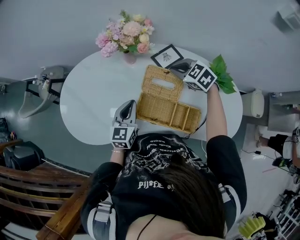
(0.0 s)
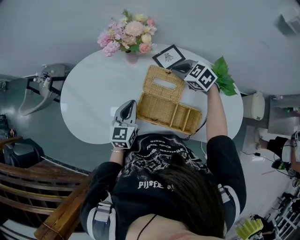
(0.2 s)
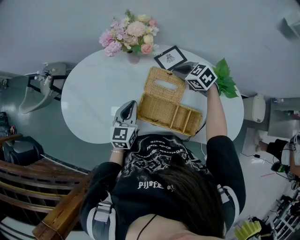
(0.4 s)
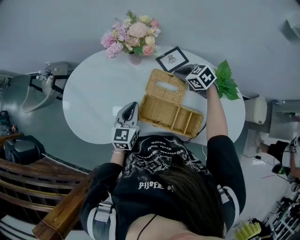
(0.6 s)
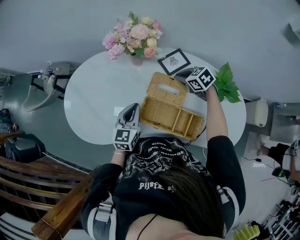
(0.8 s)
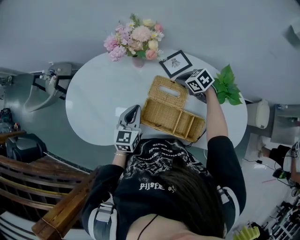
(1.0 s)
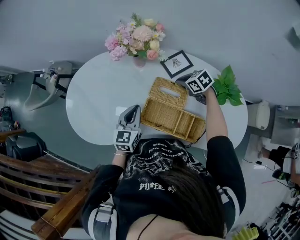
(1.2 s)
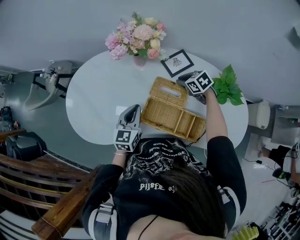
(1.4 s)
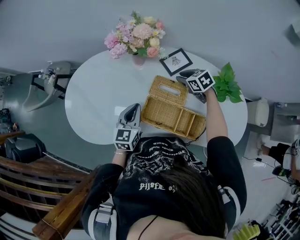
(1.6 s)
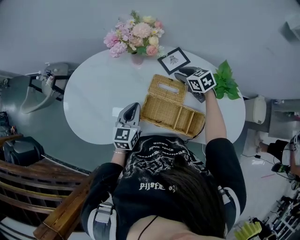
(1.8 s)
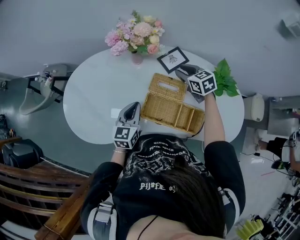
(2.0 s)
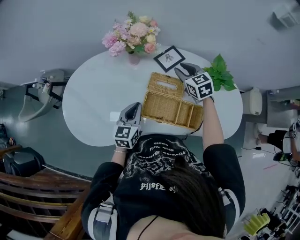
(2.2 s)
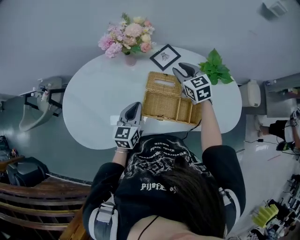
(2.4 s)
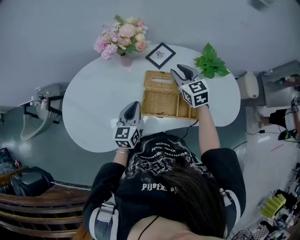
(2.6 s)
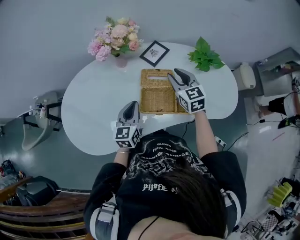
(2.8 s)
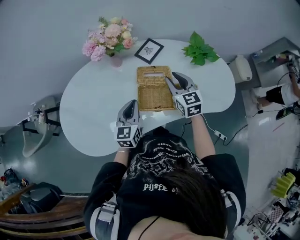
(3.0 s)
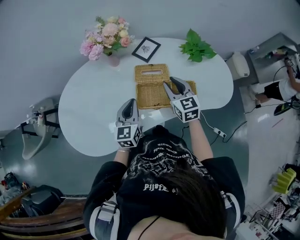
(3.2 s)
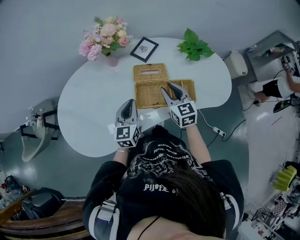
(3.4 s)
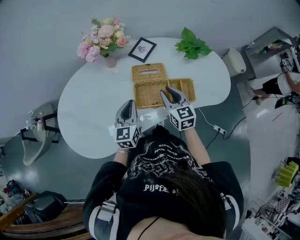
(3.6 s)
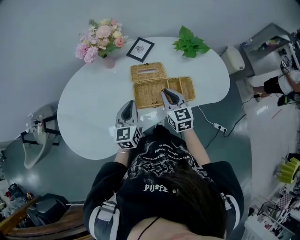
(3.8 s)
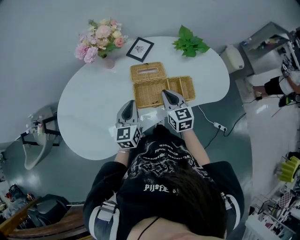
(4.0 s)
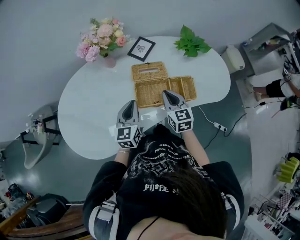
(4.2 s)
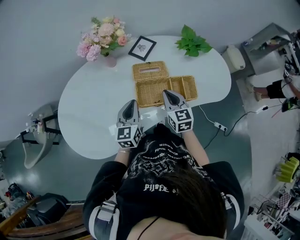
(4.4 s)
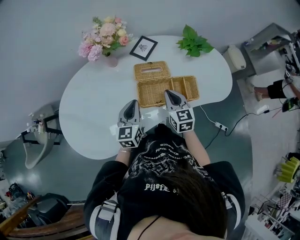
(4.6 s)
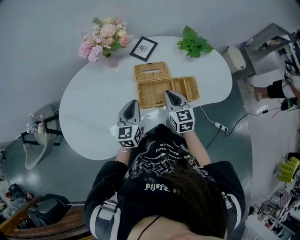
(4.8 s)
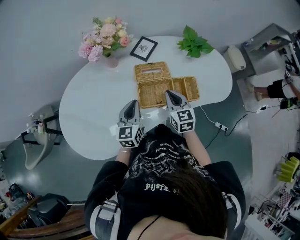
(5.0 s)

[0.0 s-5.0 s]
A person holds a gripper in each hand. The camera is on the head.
0.0 to 1.6 s: The right gripper is displaced downward by some 10 cm, swivels some 20 degrees, and opens.
1.6 to 3.4 s: The left gripper shifts by some 5 cm, while the right gripper changes place by some 25 cm, and rotates some 50 degrees.
3.4 to 5.0 s: The right gripper closes its fingers.

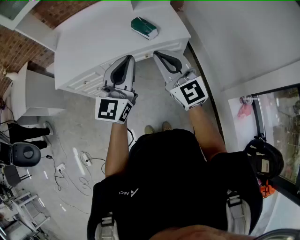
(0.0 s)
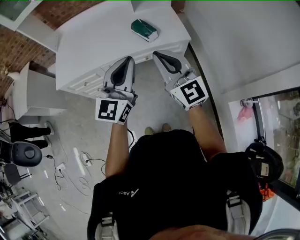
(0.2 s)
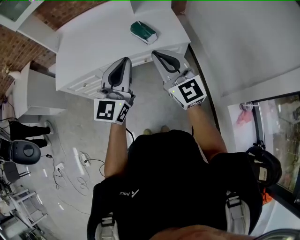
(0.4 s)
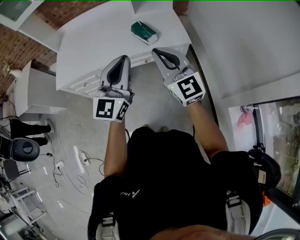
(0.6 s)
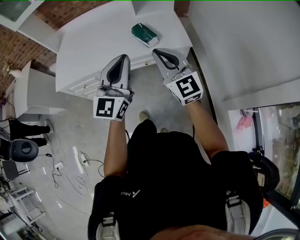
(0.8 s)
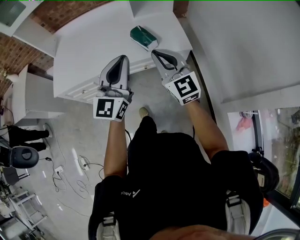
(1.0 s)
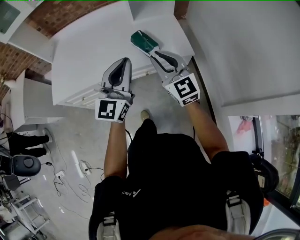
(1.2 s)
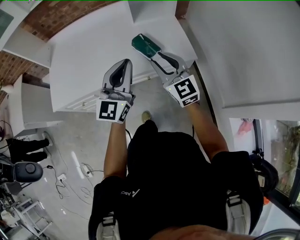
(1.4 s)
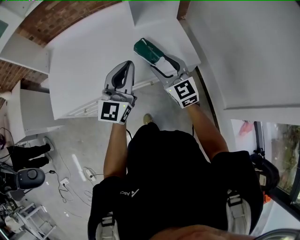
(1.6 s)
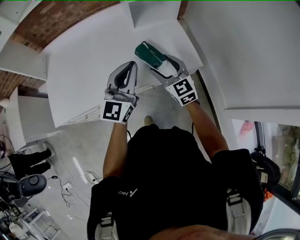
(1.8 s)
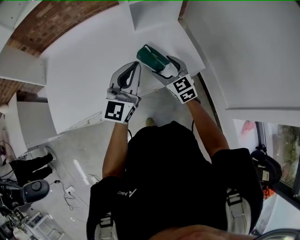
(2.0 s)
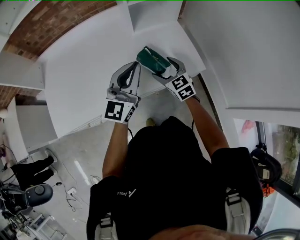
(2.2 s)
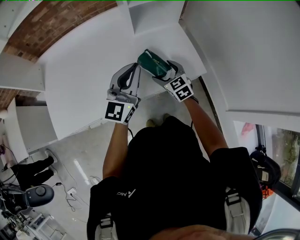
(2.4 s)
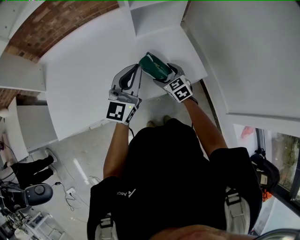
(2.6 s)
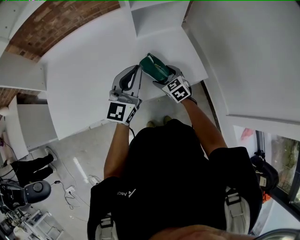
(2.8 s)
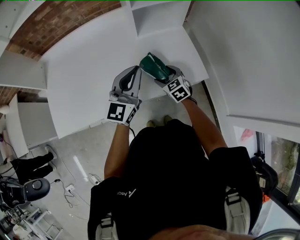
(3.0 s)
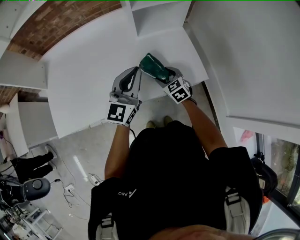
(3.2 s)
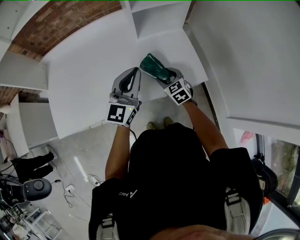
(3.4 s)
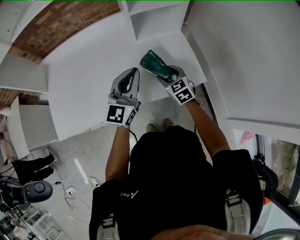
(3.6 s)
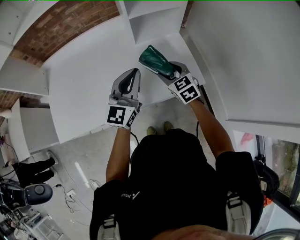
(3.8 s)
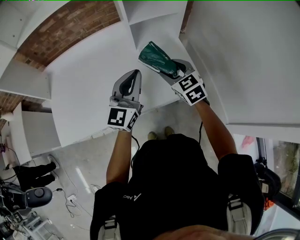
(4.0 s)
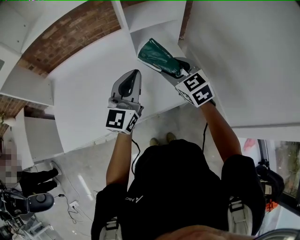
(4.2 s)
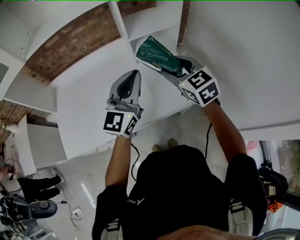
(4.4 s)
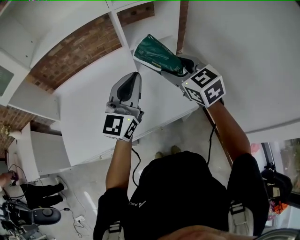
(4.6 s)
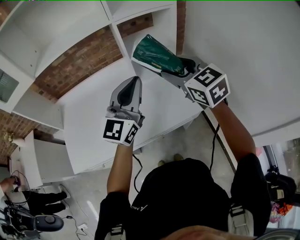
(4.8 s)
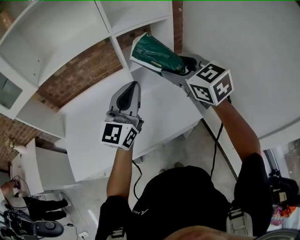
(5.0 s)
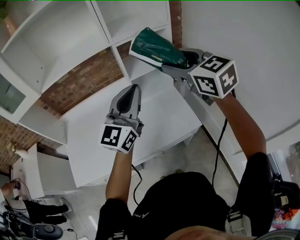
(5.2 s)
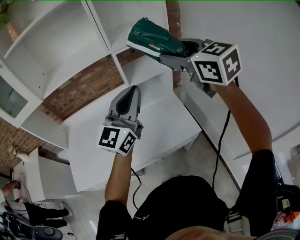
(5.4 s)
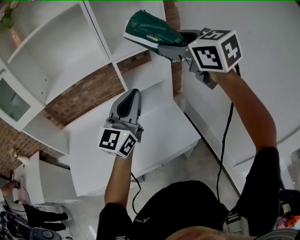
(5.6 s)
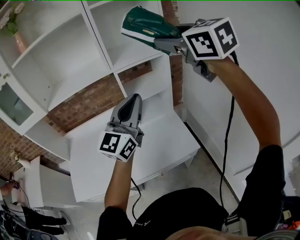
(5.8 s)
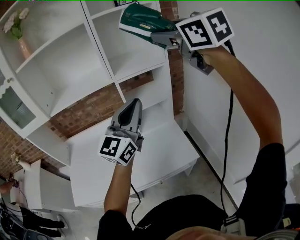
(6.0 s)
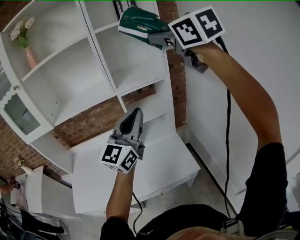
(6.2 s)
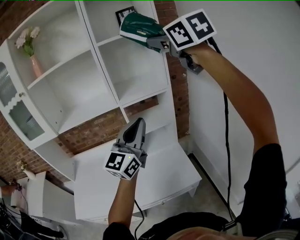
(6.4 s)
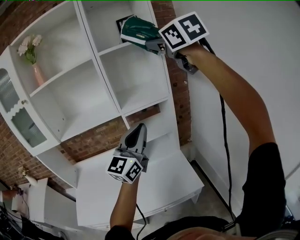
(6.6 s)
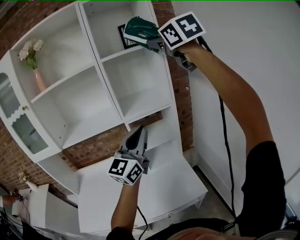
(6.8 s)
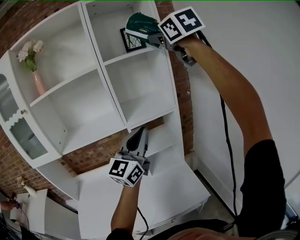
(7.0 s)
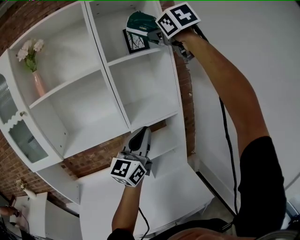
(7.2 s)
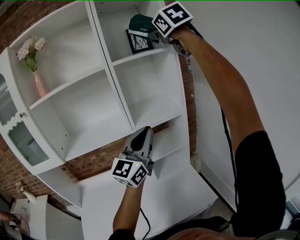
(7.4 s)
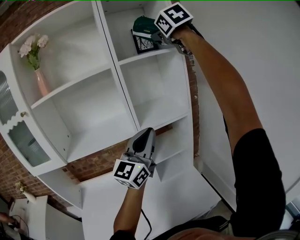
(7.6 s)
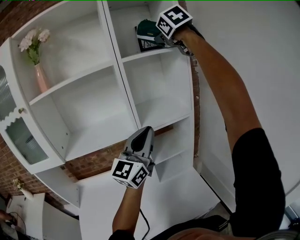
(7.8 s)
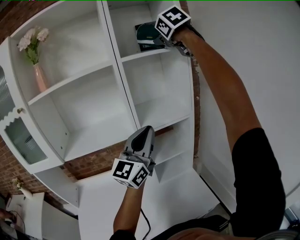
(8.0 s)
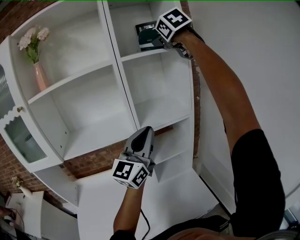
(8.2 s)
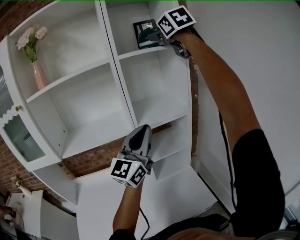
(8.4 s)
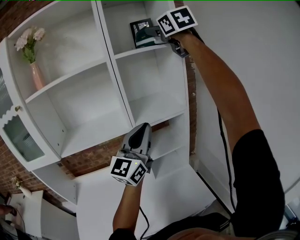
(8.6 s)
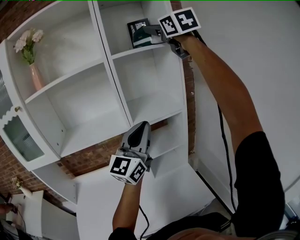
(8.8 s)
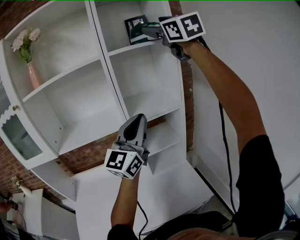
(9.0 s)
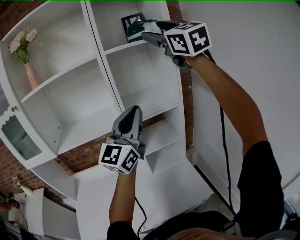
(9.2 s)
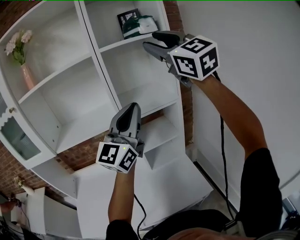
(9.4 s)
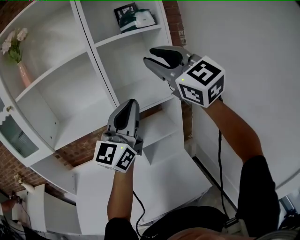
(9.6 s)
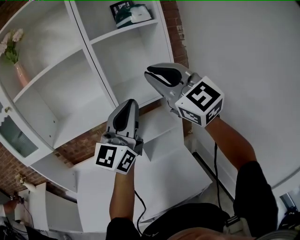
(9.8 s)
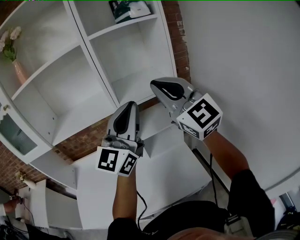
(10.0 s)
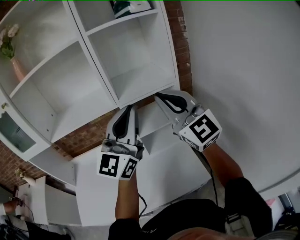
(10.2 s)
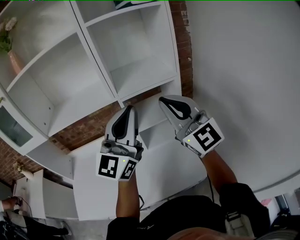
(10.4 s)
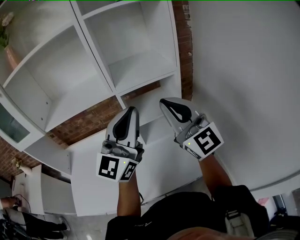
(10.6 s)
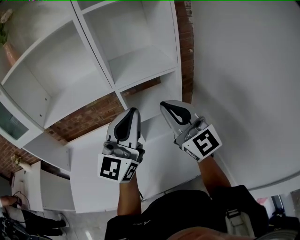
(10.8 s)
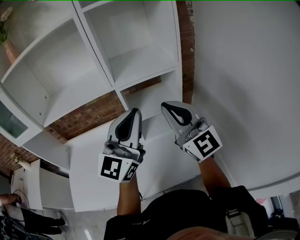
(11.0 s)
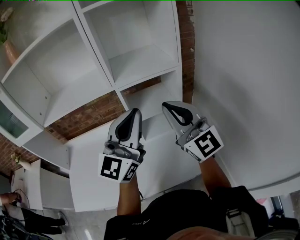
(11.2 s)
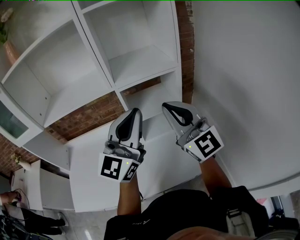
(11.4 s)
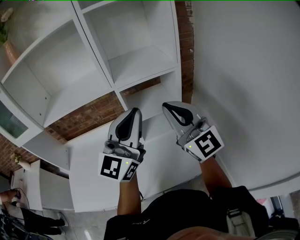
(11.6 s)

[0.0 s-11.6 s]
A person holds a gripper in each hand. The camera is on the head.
0.0 to 1.4 s: The left gripper goes about 20 cm forward. The right gripper heads forward and downward, covering about 20 cm.
1.4 to 2.8 s: The right gripper moves downward and forward, about 30 cm, tips its fingers downward by approximately 40 degrees, and opens its fingers; the left gripper moves forward, about 15 cm.
2.8 to 4.4 s: The right gripper moves upward, some 30 cm, and closes up. The left gripper is displaced upward by roughly 15 cm.
4.4 to 5.8 s: The right gripper goes approximately 40 cm upward, while the left gripper heads upward and to the right, covering approximately 20 cm.
5.8 to 7.2 s: The right gripper travels upward and forward by approximately 25 cm. Meanwhile the left gripper moves forward and upward, about 10 cm.
8.8 to 10.2 s: The right gripper is displaced downward and backward by about 35 cm, and closes its fingers.
10.2 to 11.6 s: Both grippers move downward, some 5 cm.

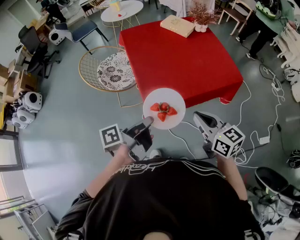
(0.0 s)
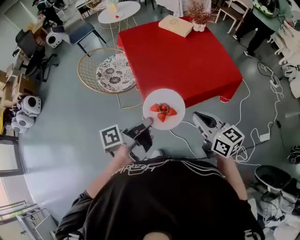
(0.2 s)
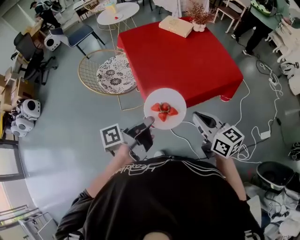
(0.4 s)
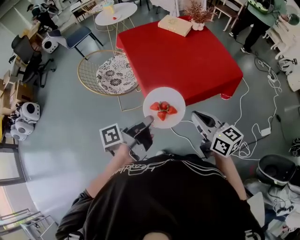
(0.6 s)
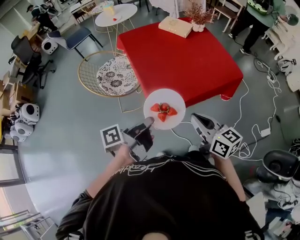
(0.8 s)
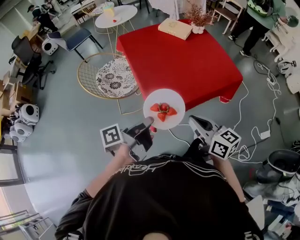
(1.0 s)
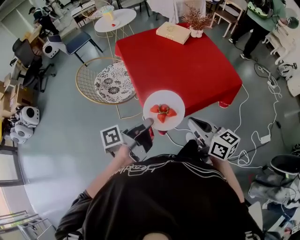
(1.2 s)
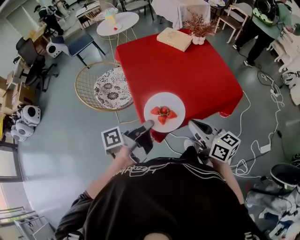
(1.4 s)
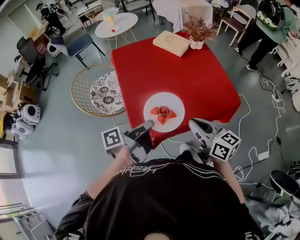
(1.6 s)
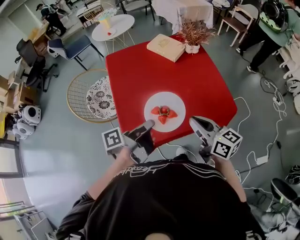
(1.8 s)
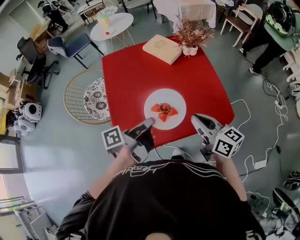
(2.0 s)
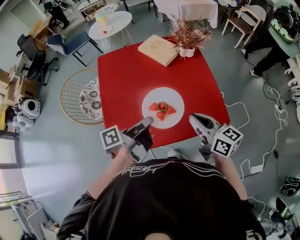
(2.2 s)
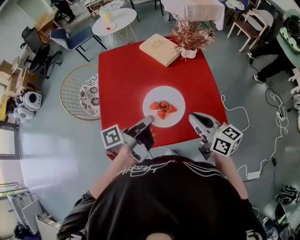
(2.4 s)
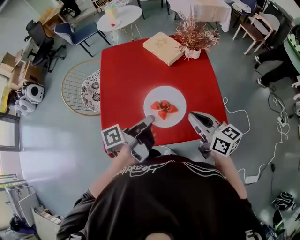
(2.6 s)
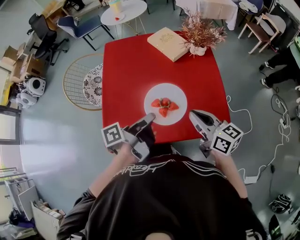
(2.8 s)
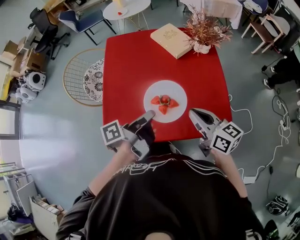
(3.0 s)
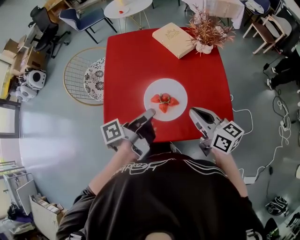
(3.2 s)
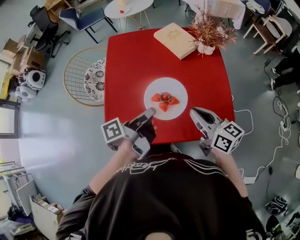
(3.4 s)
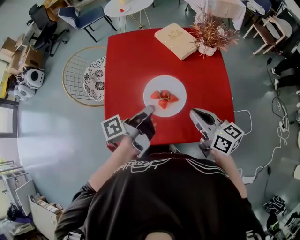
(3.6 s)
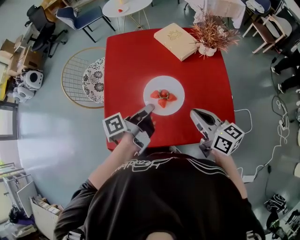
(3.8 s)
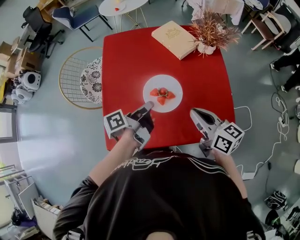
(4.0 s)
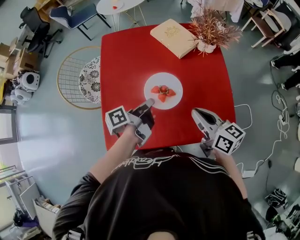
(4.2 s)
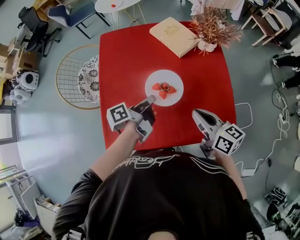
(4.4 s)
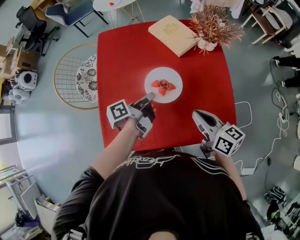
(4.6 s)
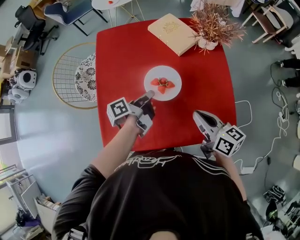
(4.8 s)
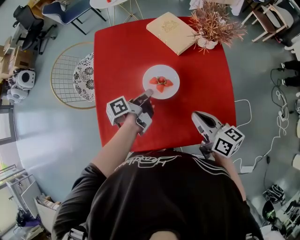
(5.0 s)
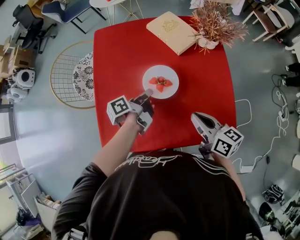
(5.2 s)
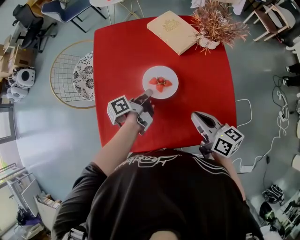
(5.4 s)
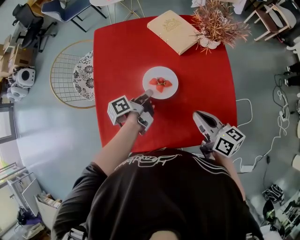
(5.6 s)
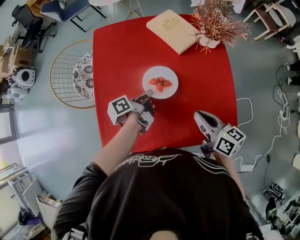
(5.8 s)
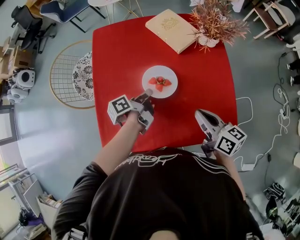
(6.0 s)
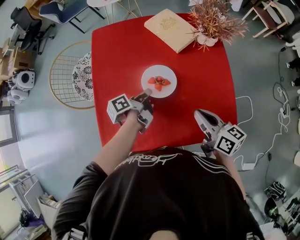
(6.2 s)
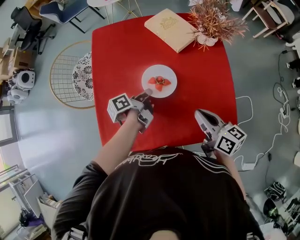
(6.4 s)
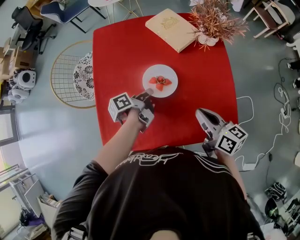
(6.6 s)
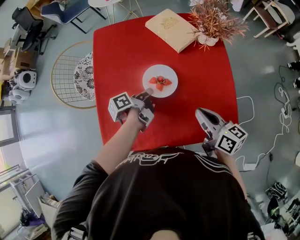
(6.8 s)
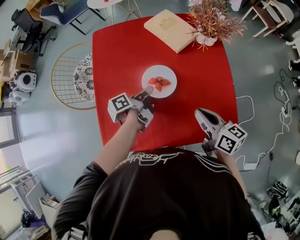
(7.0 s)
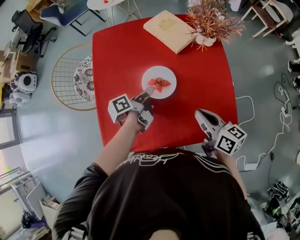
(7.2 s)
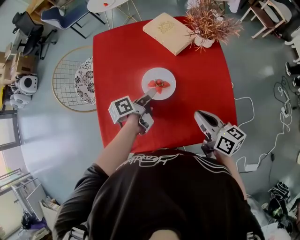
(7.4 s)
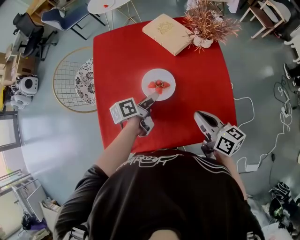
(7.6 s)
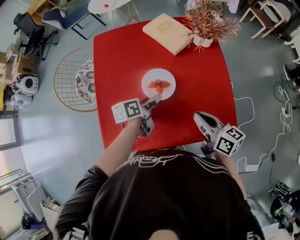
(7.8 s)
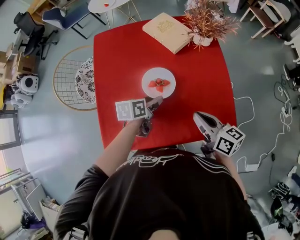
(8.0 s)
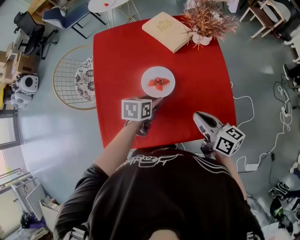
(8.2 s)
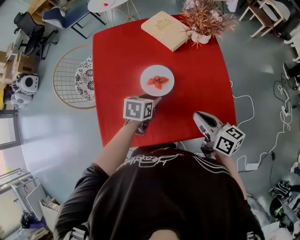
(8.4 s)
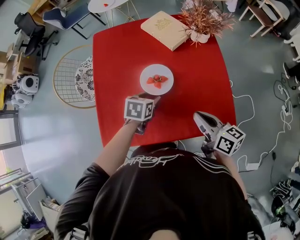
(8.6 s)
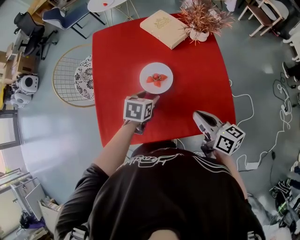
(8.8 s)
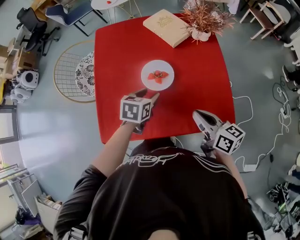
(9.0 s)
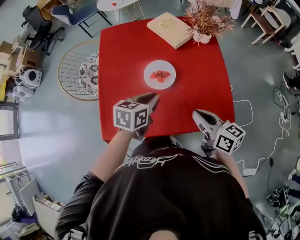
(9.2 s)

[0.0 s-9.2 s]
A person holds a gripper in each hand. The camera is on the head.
0.0 to 1.6 s: The right gripper changes place by about 15 cm.
1.6 to 3.0 s: The right gripper moves roughly 20 cm.
3.0 to 4.6 s: The right gripper moves roughly 5 cm.
7.6 to 9.2 s: The right gripper moves roughly 5 cm.
